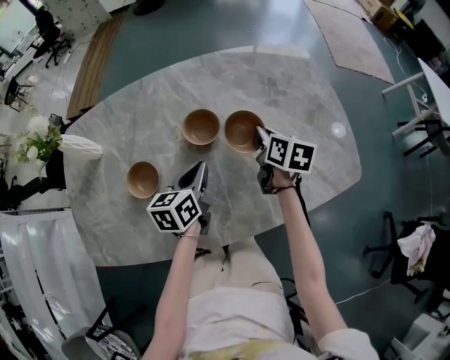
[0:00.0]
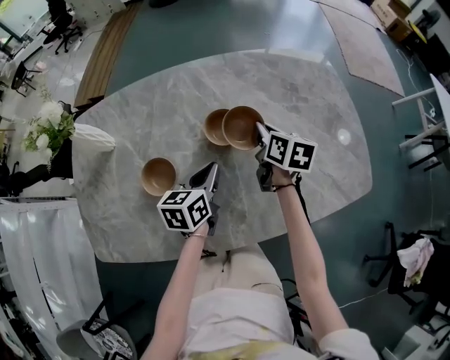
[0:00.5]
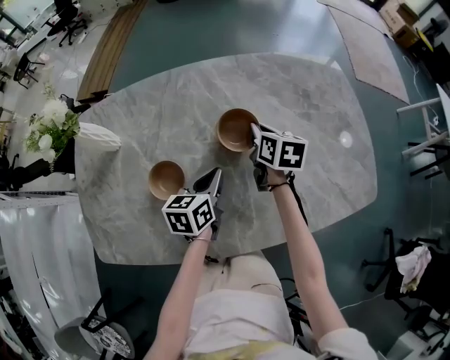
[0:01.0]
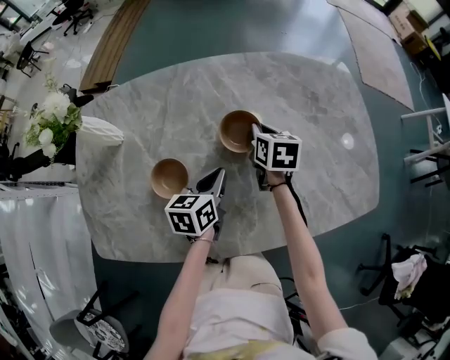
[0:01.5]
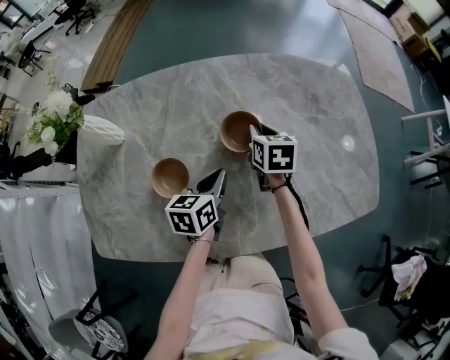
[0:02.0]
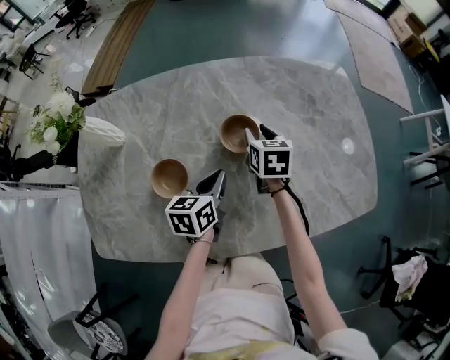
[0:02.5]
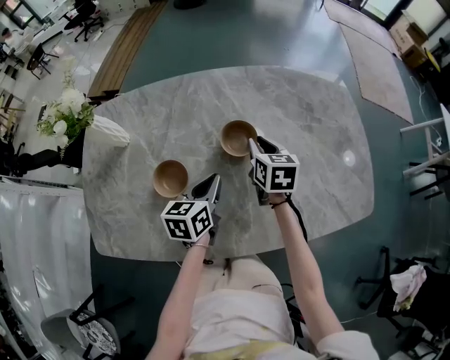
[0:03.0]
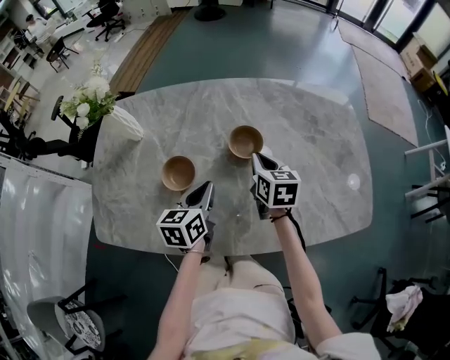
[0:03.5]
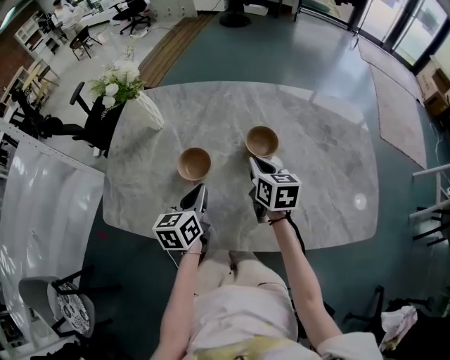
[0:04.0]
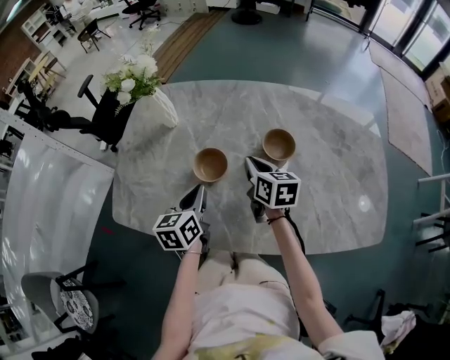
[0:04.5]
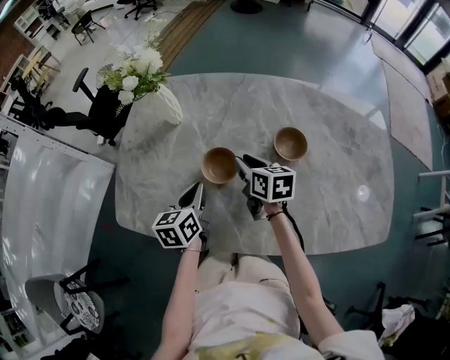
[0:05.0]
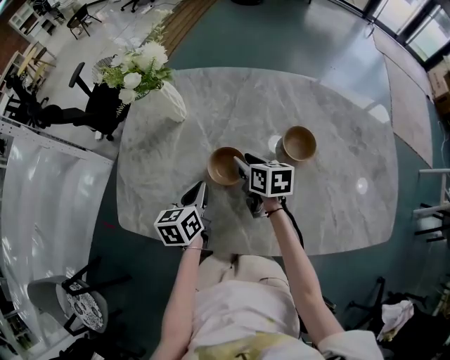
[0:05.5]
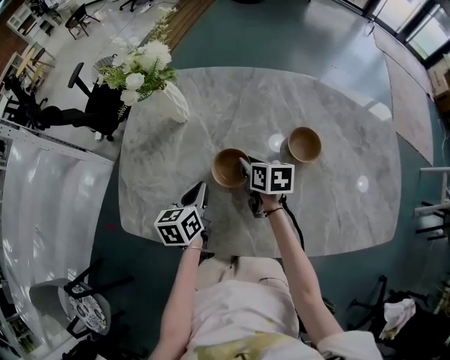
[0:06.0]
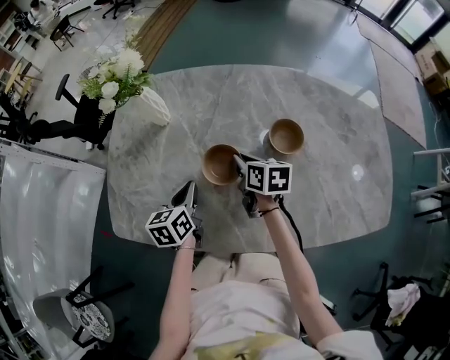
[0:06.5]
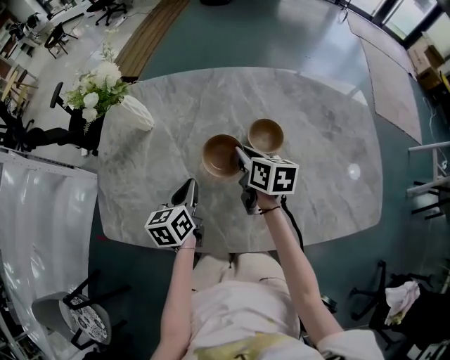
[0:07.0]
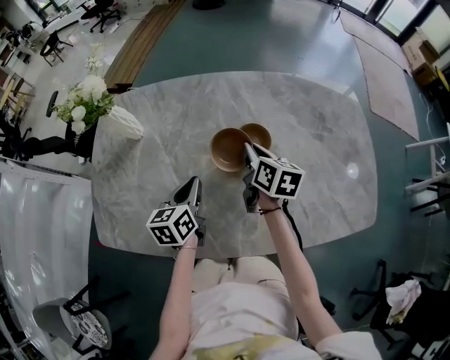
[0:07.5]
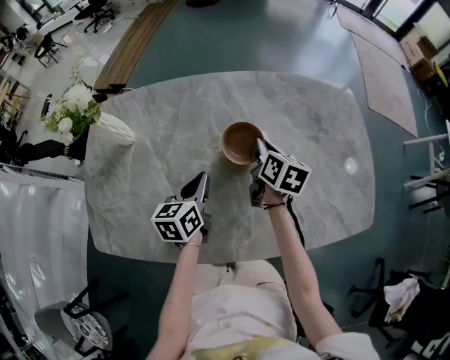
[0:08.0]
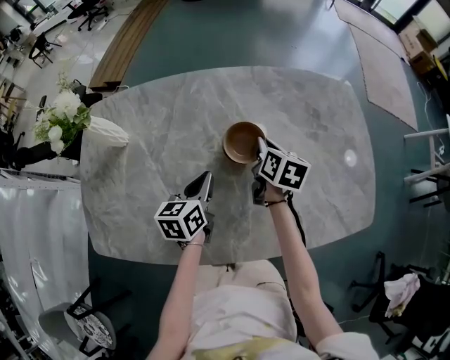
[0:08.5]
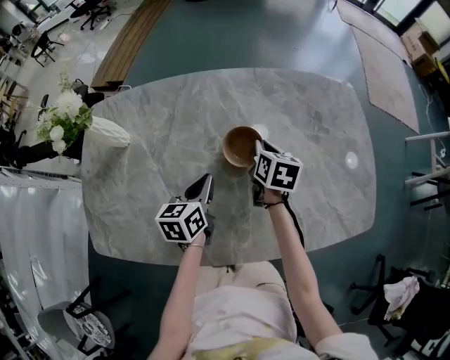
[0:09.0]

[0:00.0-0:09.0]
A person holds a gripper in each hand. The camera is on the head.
0:00.0 to 0:02.0: The left gripper moves to the left, about 5 cm. The right gripper is displaced to the left by roughly 15 cm, and swivels approximately 20 degrees.
0:02.0 to 0:04.5: The right gripper changes place by about 20 cm, swivels some 30 degrees, and opens, then closes once more; the left gripper shifts by roughly 20 cm, and swivels approximately 30 degrees.
0:04.5 to 0:07.0: The left gripper goes to the left and returns, roughly 5 cm each way. Meanwhile the right gripper reaches about 10 cm to the left, then returns, and opens and closes again.
0:07.0 to 0:09.0: Both grippers move to the right and forward, about 15 cm. The right gripper changes its angle by approximately 20 degrees.

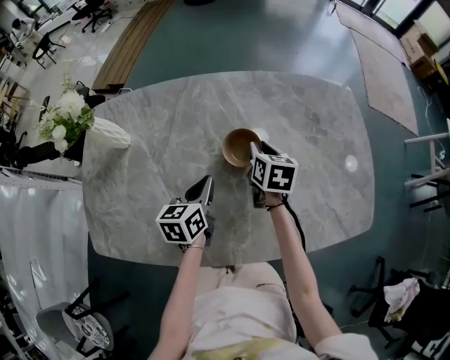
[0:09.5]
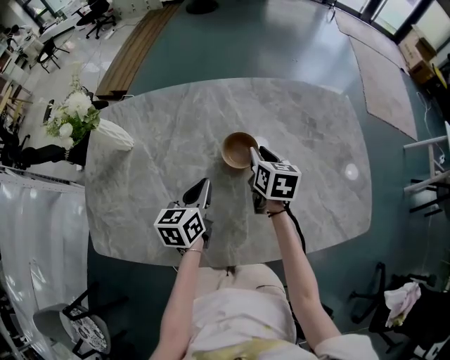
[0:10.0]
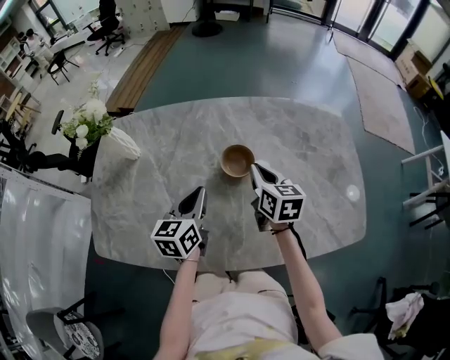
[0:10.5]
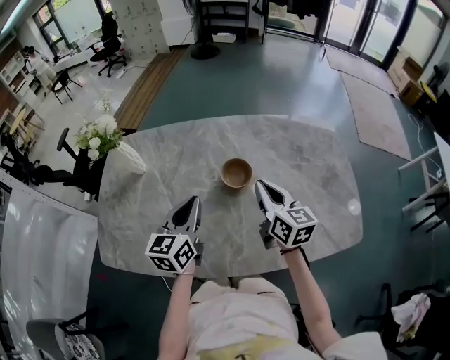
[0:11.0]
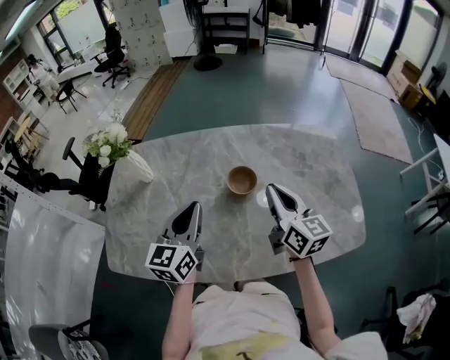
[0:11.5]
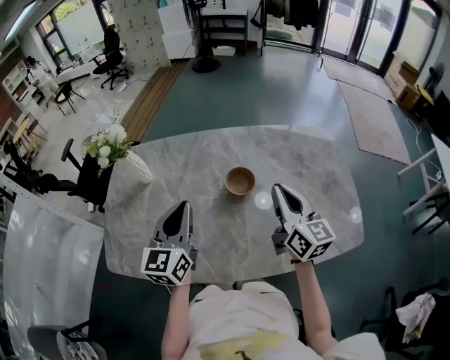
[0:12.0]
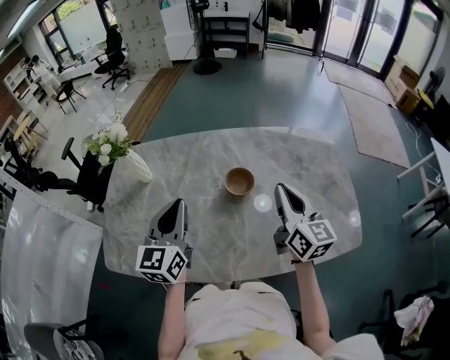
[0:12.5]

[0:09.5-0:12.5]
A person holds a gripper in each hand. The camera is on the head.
0:09.5 to 0:11.0: The grippers both shift upward and backward by approximately 15 cm. The right gripper turns by some 30 degrees. Meanwhile the left gripper swivels some 20 degrees.
0:11.0 to 0:12.5: The two grippers go some 5 cm upward.

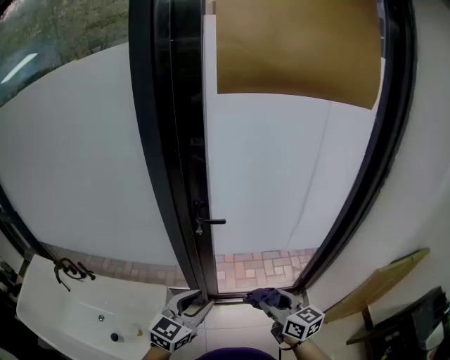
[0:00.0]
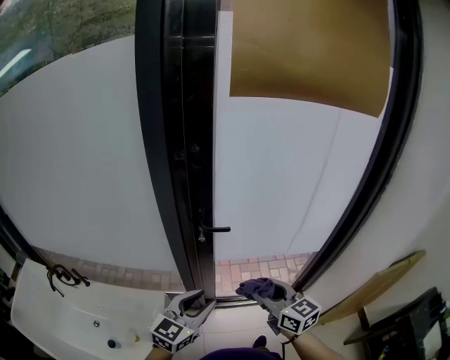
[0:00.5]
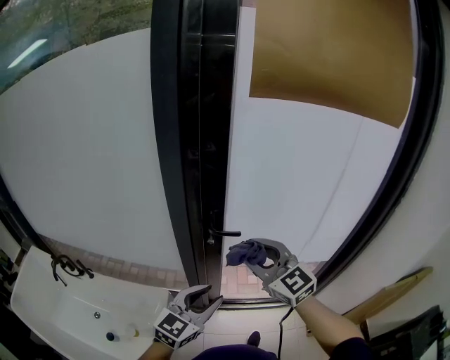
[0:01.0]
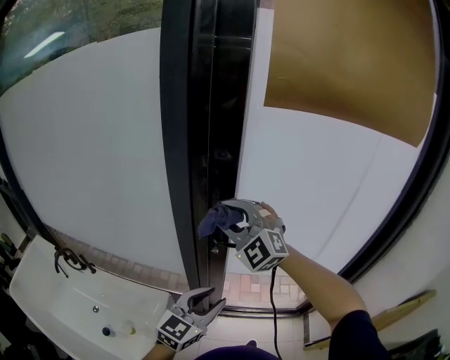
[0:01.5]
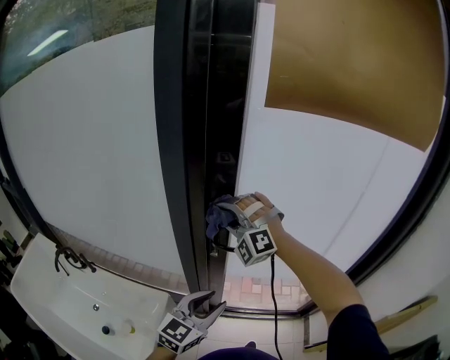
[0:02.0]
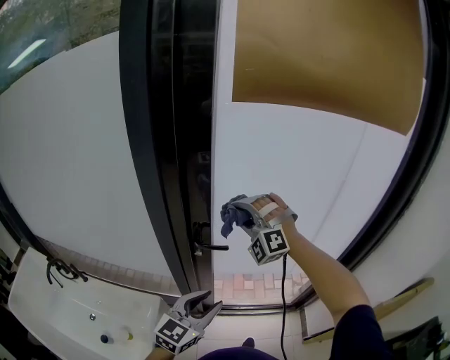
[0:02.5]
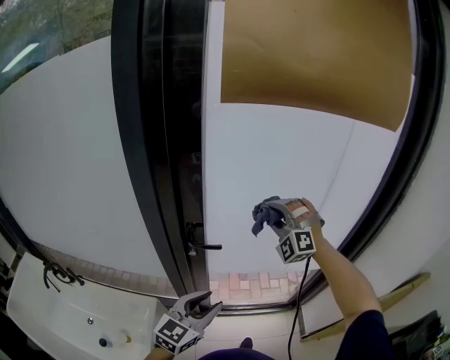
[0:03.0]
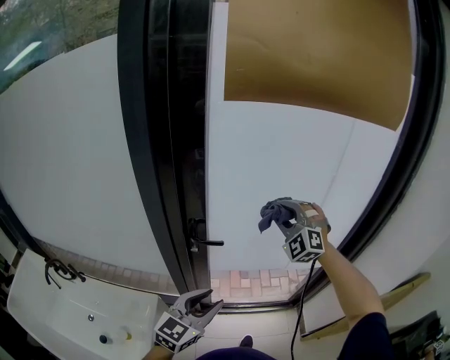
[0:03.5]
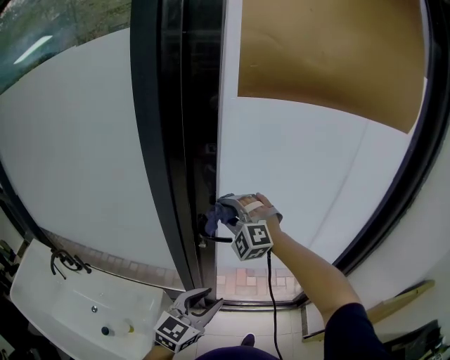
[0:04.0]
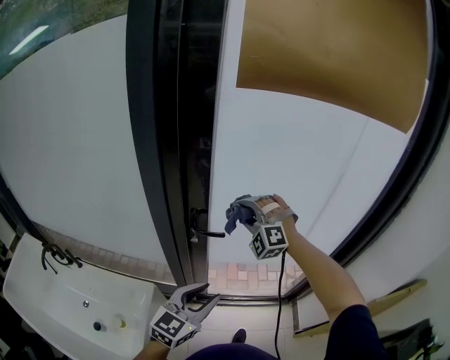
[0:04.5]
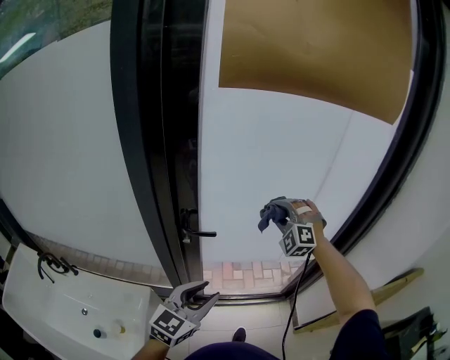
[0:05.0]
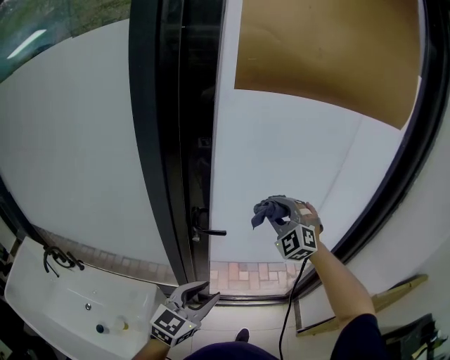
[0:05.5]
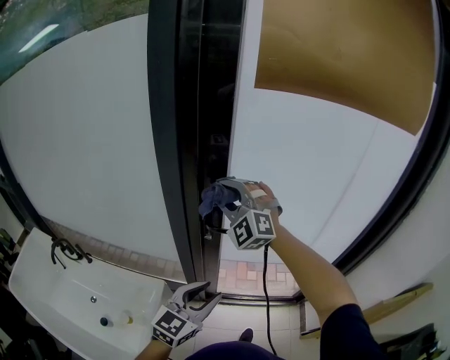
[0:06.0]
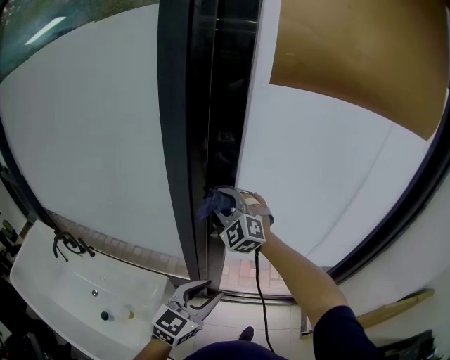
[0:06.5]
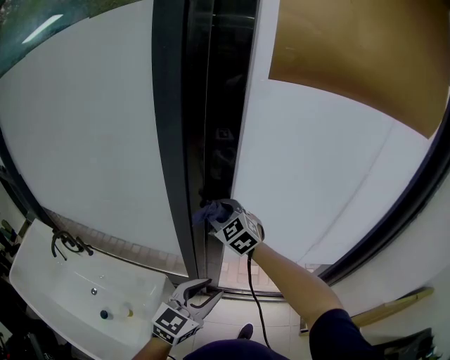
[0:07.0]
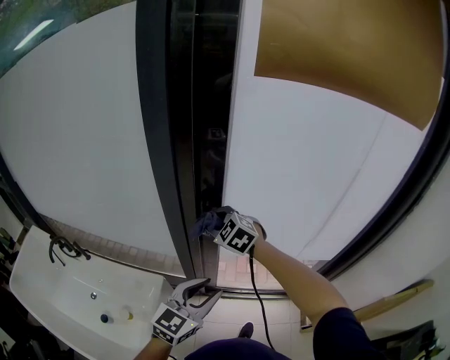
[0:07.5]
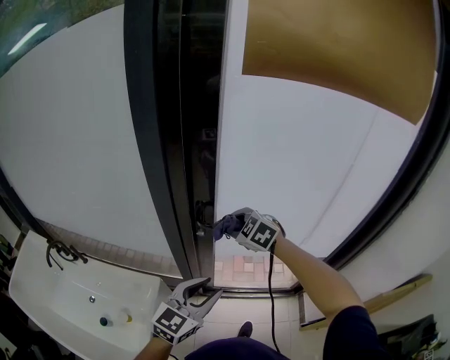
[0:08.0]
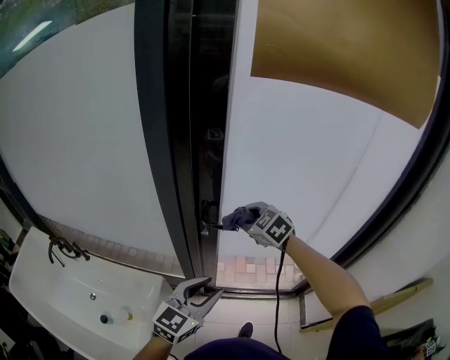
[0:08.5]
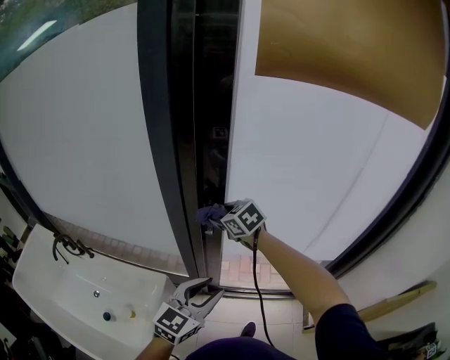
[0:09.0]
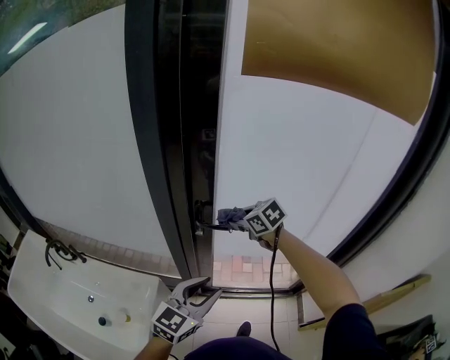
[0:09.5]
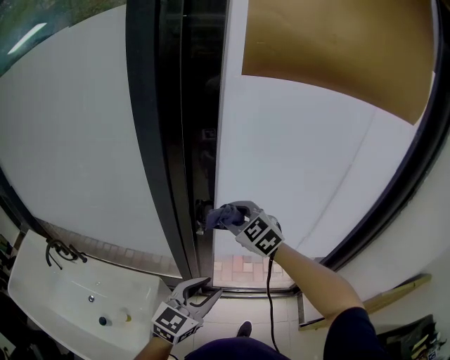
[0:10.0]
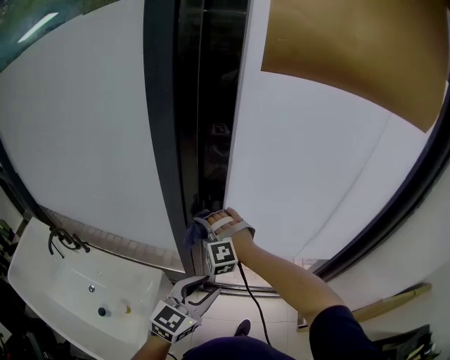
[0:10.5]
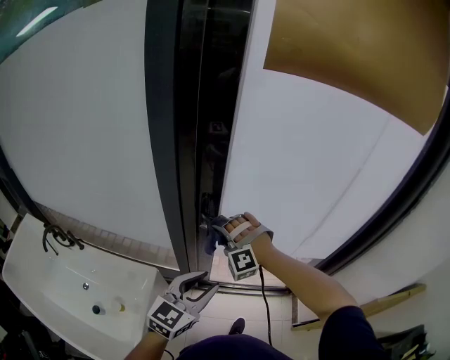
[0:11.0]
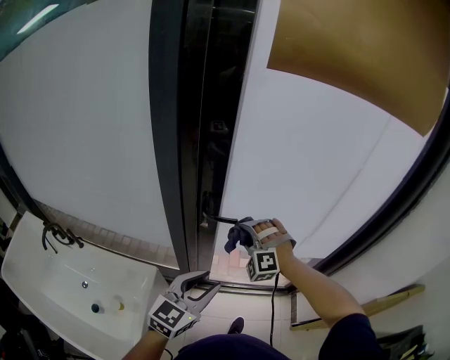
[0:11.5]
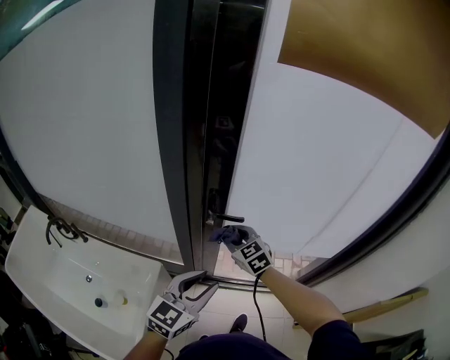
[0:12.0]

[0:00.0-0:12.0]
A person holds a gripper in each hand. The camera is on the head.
0:00.0 to 0:02.0: The left gripper heads forward, covering roughly 10 cm, while the right gripper heads forward, to the left and upward, covering roughly 40 cm, and rolls counterclockwise, seen from behind, by roughly 110 degrees.
0:02.0 to 0:04.0: The right gripper travels to the right and back again, roughly 25 cm each way.
0:04.0 to 0:06.0: The right gripper is displaced upward by roughly 5 cm, and moves roughly 25 cm to the right and comes back.
0:06.0 to 0:08.0: The right gripper goes roughly 15 cm downward, and points its fingers approximately 40 degrees further downward.
0:08.0 to 0:10.0: The right gripper goes left and right, about 10 cm each way, reversing 2 times.
0:10.0 to 0:12.0: The right gripper swings left and right, roughly 15 cm each way, with 2 reversals.

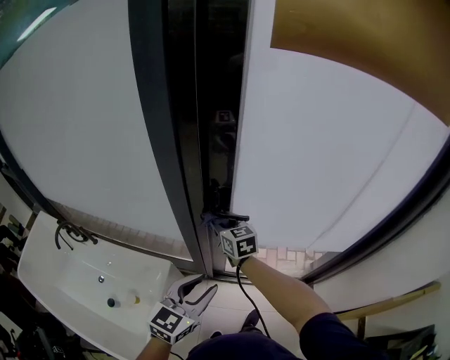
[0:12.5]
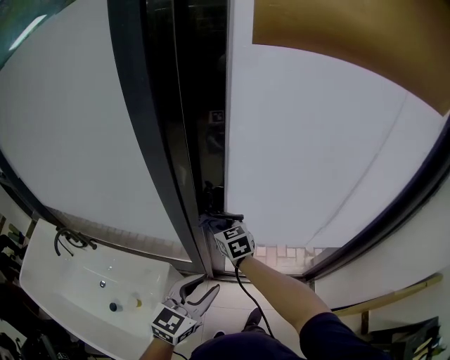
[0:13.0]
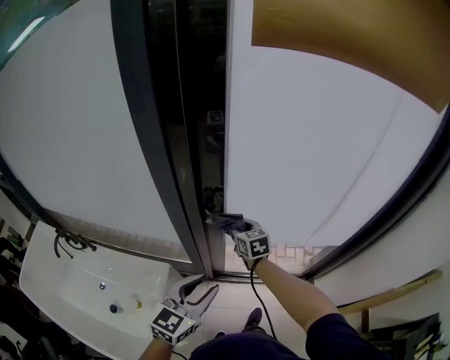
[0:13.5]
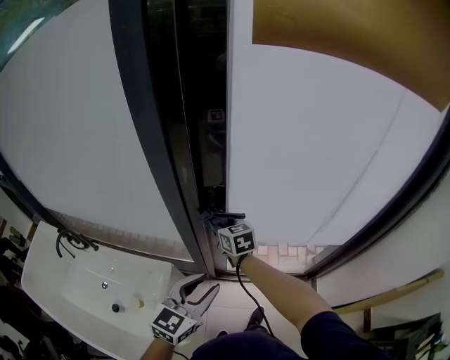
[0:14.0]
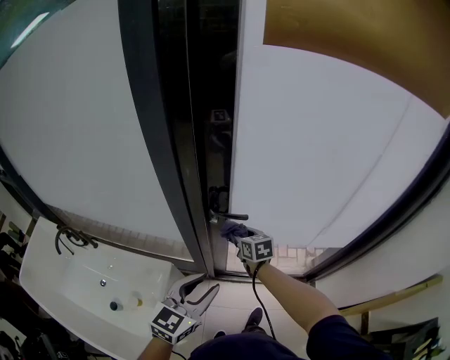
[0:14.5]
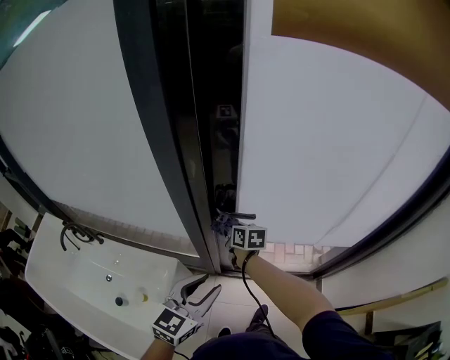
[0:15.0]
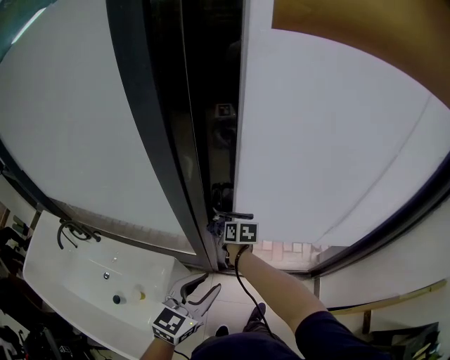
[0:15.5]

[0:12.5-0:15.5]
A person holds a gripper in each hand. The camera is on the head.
0:12.5 to 0:14.0: The right gripper goes to the right and returns, approximately 10 cm each way.
0:14.0 to 0:15.5: The right gripper shifts roughly 10 cm downward, and rotates some 30 degrees.
